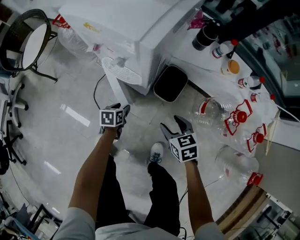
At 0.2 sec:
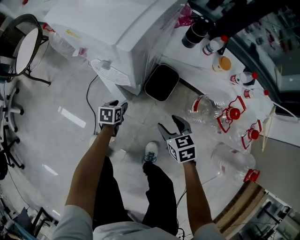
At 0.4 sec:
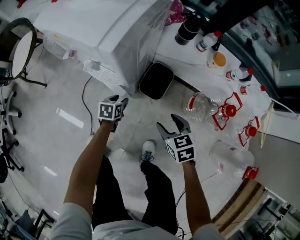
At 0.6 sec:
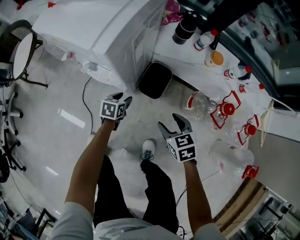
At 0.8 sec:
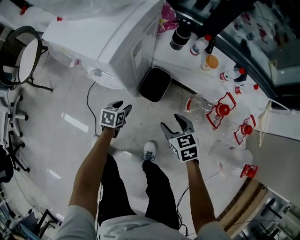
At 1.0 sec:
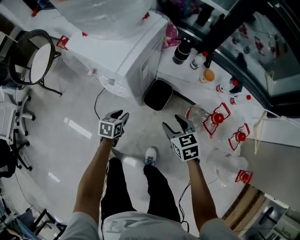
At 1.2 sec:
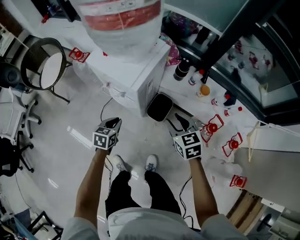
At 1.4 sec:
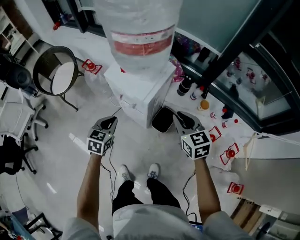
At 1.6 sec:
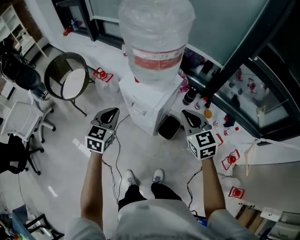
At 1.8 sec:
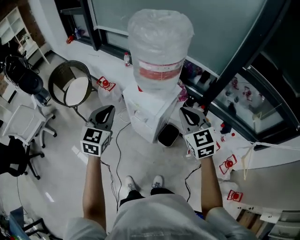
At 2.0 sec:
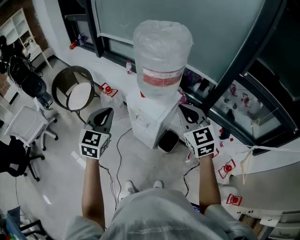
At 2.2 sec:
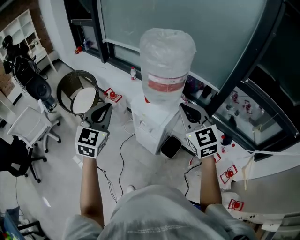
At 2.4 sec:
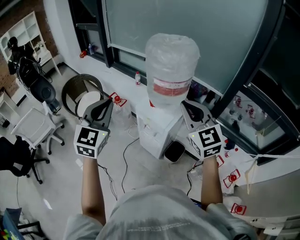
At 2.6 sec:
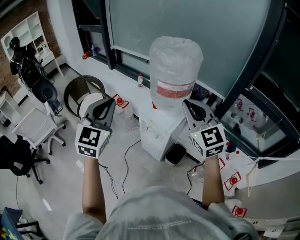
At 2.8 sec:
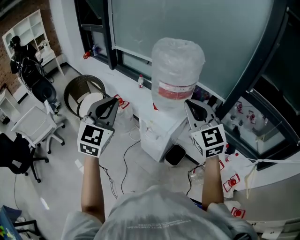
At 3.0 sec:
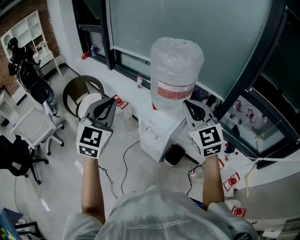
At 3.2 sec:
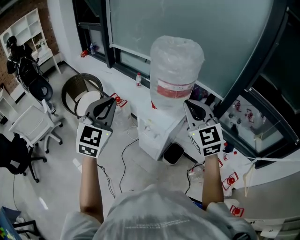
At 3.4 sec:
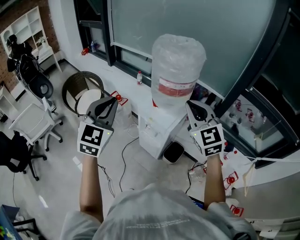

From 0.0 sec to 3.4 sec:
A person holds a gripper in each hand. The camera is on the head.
From 0.0 sec to 1.6 sec: Both grippers move upward, roughly 60 cm. The right gripper rotates some 30 degrees, and closes its fingers, while the left gripper points its fingers about 30 degrees further upward, and closes.
From 1.6 sec to 3.4 sec: The left gripper is displaced upward by roughly 25 cm, and changes its angle by roughly 30 degrees. The right gripper shifts roughly 25 cm upward and to the left, and changes its angle by roughly 30 degrees.

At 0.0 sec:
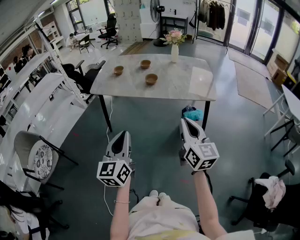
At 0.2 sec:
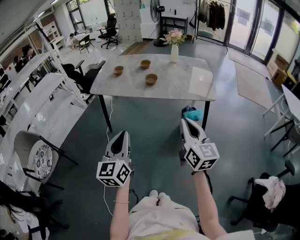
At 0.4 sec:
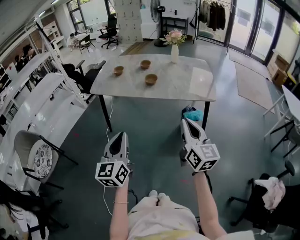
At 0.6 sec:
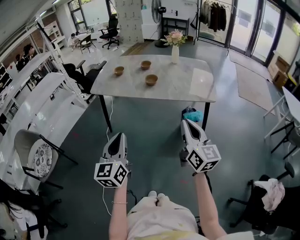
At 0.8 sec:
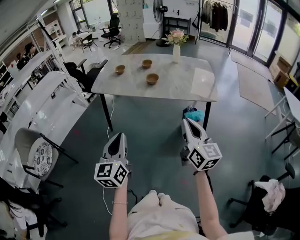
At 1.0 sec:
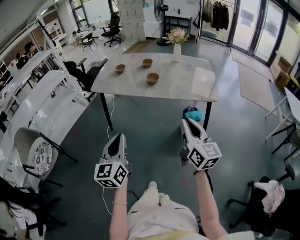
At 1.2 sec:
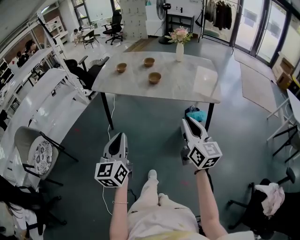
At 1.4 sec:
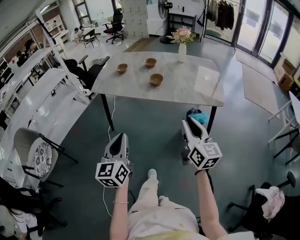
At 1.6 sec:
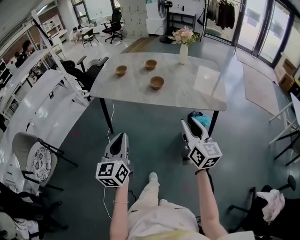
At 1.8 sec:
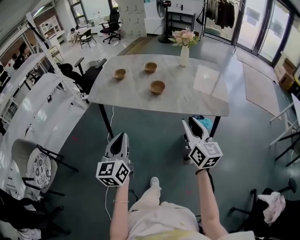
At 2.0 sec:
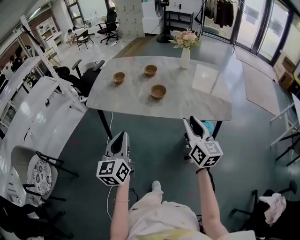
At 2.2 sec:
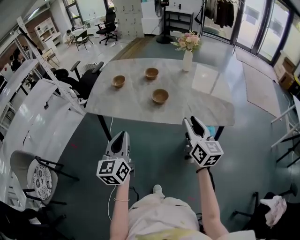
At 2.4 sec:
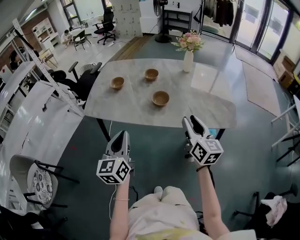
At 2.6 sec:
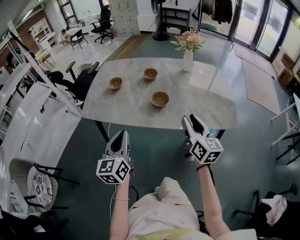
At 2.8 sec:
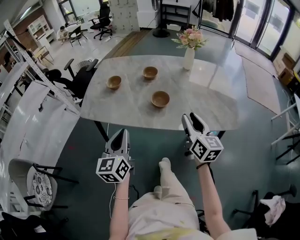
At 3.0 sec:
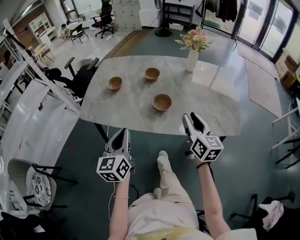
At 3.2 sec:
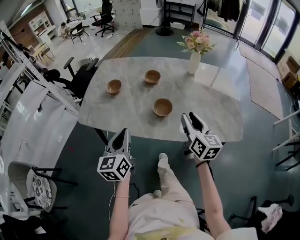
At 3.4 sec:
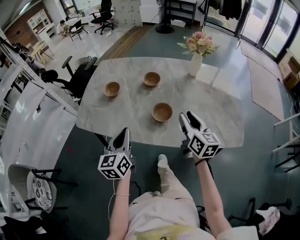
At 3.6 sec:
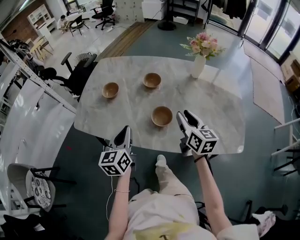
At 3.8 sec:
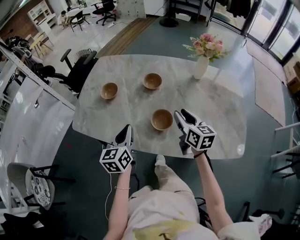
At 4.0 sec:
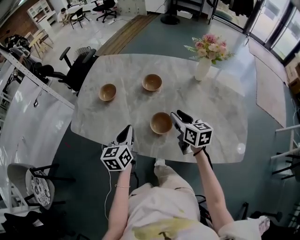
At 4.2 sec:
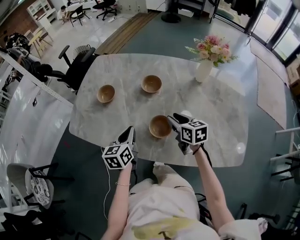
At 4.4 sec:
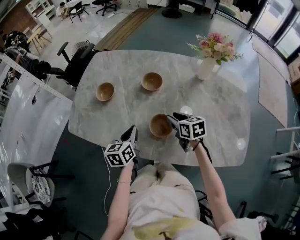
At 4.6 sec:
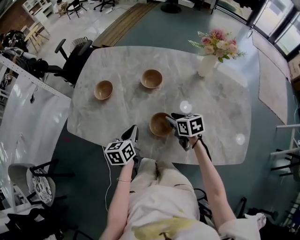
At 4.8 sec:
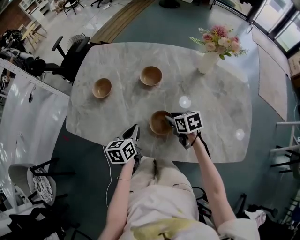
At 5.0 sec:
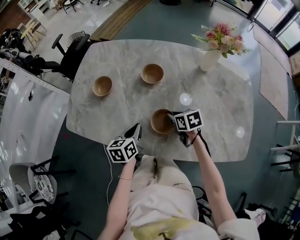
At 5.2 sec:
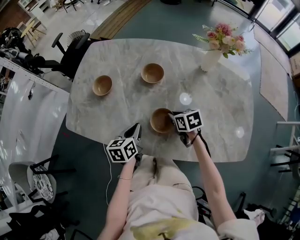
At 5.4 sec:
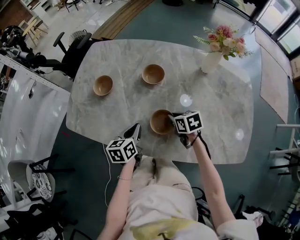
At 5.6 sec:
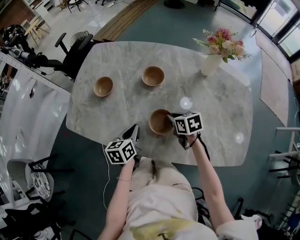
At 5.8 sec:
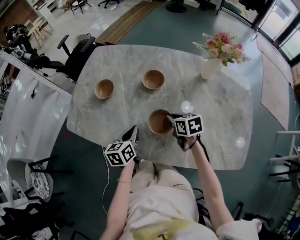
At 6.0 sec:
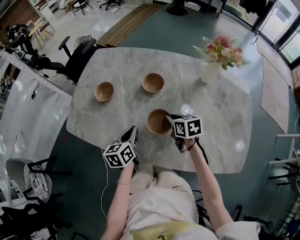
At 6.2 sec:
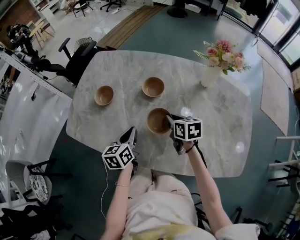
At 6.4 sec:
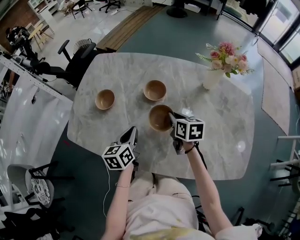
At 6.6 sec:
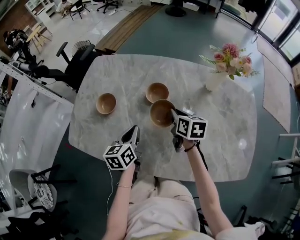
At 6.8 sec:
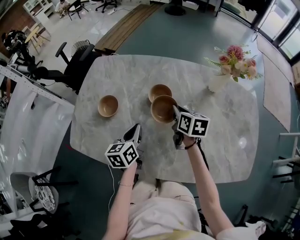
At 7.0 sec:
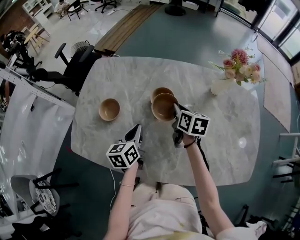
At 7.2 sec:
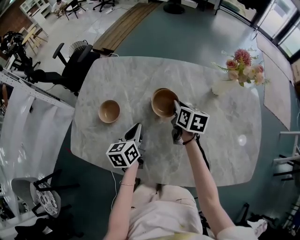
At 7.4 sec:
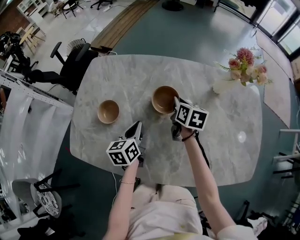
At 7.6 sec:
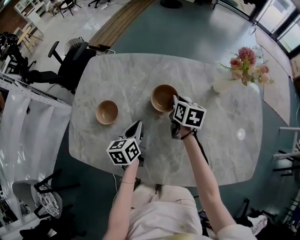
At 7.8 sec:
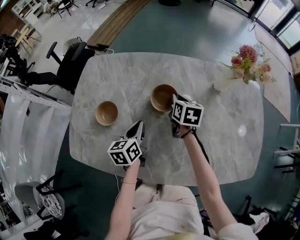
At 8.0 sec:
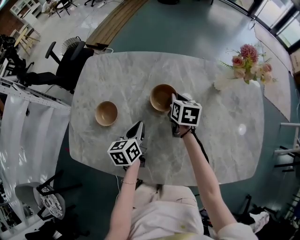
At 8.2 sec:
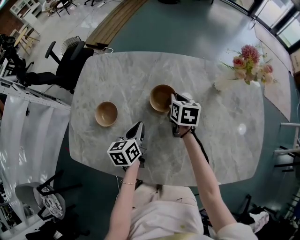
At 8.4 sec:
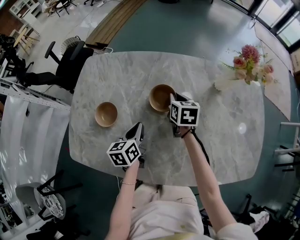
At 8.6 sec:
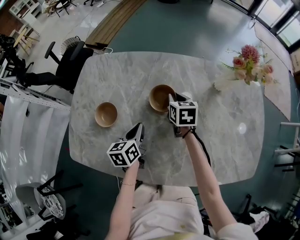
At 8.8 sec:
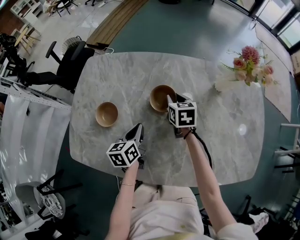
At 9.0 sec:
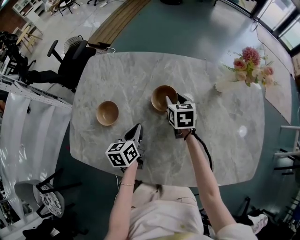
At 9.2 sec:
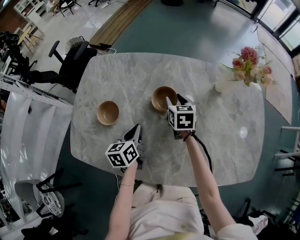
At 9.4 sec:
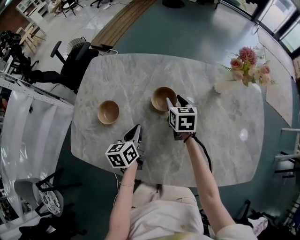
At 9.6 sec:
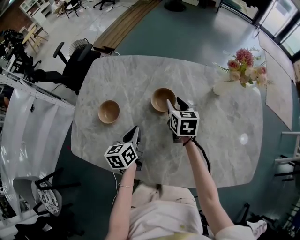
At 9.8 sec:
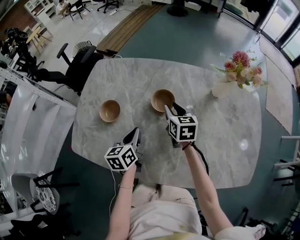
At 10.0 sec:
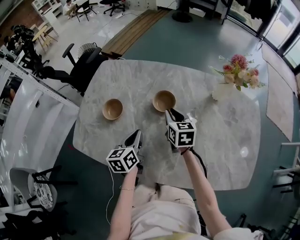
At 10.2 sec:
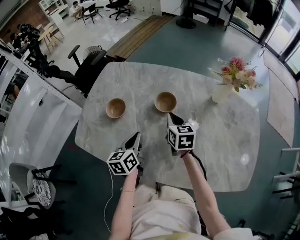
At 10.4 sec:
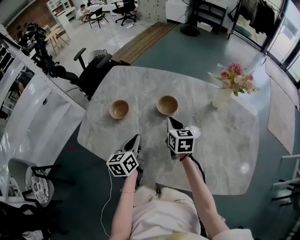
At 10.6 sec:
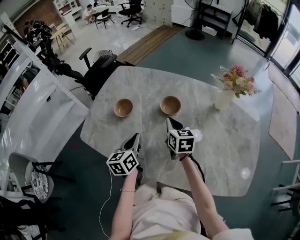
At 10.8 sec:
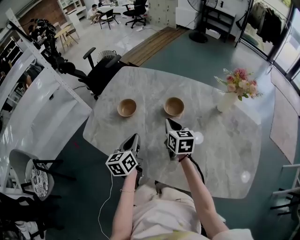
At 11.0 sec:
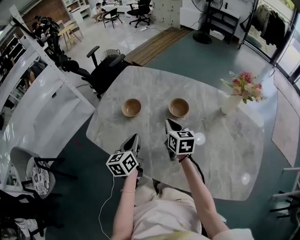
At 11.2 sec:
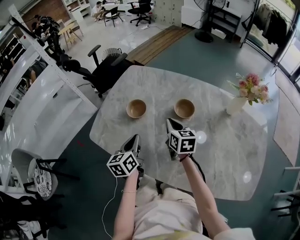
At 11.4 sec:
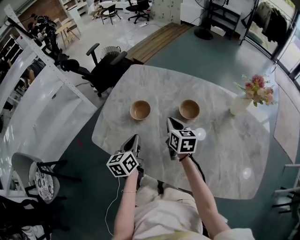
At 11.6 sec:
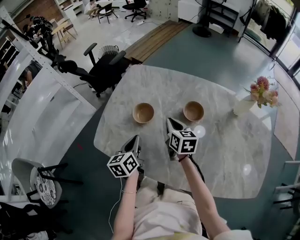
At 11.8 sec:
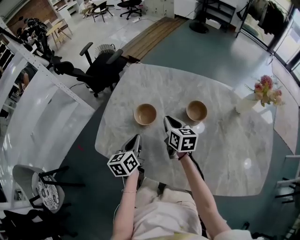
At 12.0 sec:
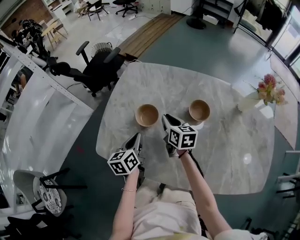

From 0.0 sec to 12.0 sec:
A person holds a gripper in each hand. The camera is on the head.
From 0.0 sec to 1.6 sec: Both grippers move forward, about 10 cm. The right gripper opens.
From 1.6 sec to 3.0 sec: Both grippers travel together forward, roughly 30 cm.
From 3.0 sec to 4.4 sec: Both grippers travel together forward and downward, some 30 cm. The left gripper rotates about 20 degrees. The right gripper tips its fingers downward by some 30 degrees.
From 4.4 sec to 6.0 sec: The right gripper closes its fingers.
From 6.0 sec to 7.6 sec: Both grippers move forward, approximately 15 cm. The right gripper turns by about 30 degrees.
From 7.6 sec to 9.0 sec: The right gripper opens its fingers.
From 9.0 sec to 10.4 sec: Both grippers travel together backward and upward, about 15 cm. The right gripper closes its fingers.
From 10.4 sec to 12.0 sec: The two grippers go approximately 20 cm to the left and forward.

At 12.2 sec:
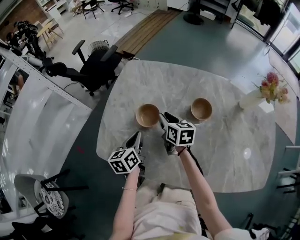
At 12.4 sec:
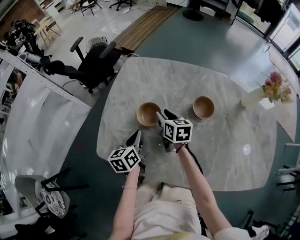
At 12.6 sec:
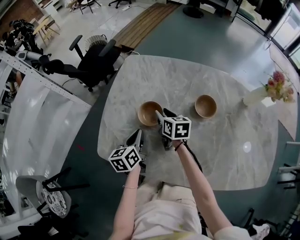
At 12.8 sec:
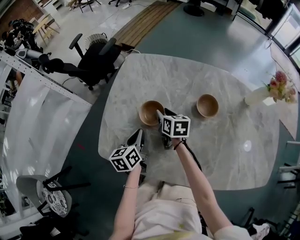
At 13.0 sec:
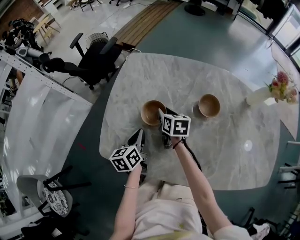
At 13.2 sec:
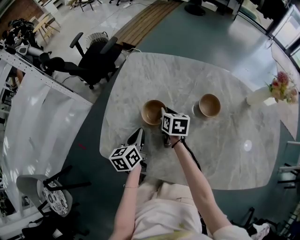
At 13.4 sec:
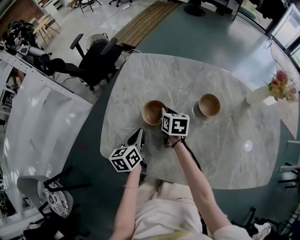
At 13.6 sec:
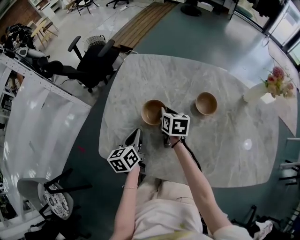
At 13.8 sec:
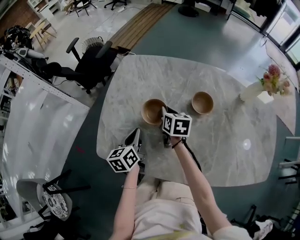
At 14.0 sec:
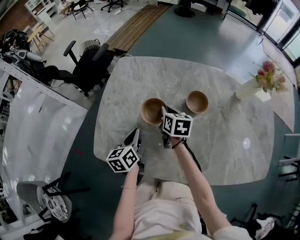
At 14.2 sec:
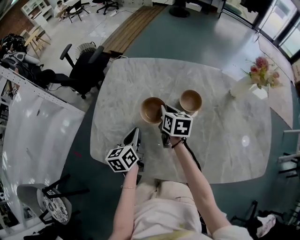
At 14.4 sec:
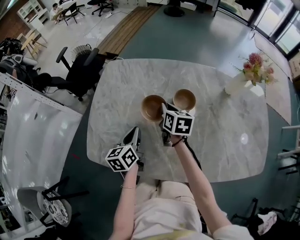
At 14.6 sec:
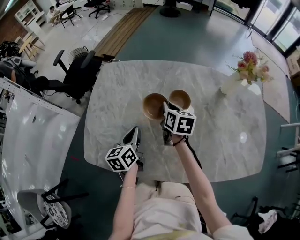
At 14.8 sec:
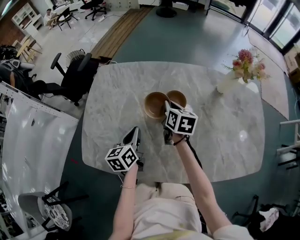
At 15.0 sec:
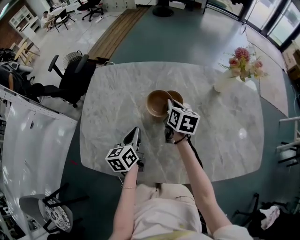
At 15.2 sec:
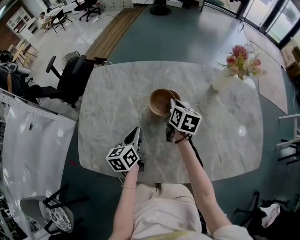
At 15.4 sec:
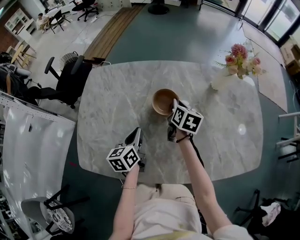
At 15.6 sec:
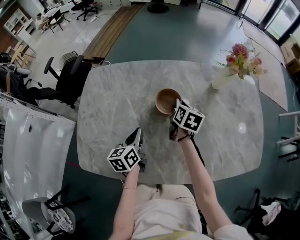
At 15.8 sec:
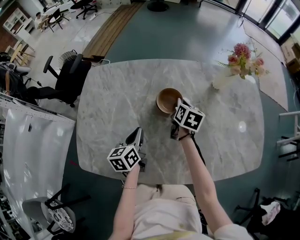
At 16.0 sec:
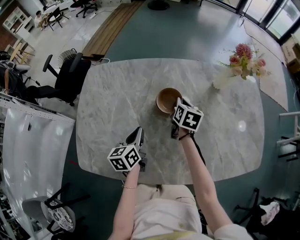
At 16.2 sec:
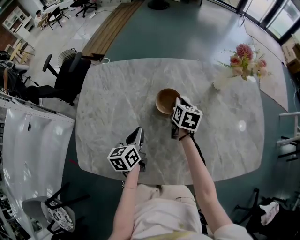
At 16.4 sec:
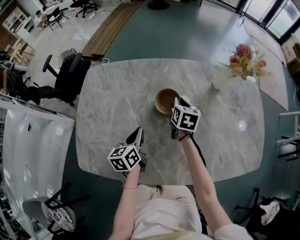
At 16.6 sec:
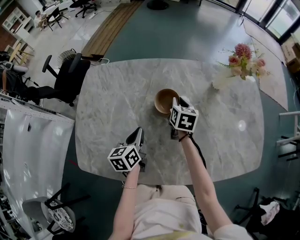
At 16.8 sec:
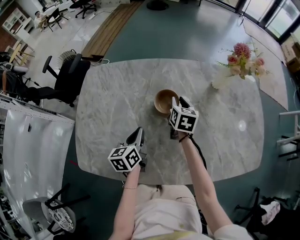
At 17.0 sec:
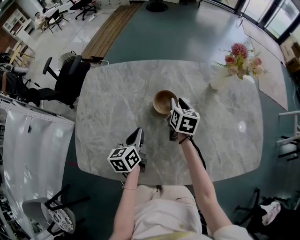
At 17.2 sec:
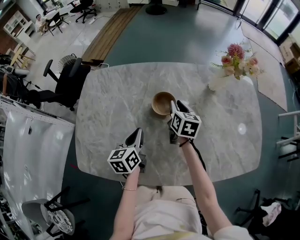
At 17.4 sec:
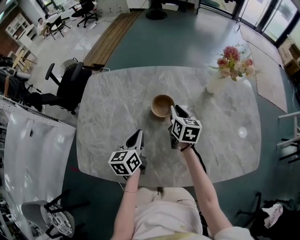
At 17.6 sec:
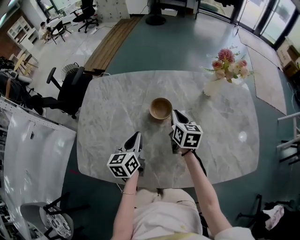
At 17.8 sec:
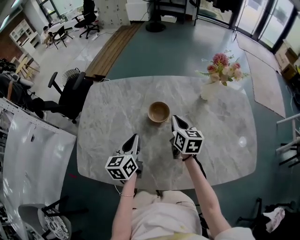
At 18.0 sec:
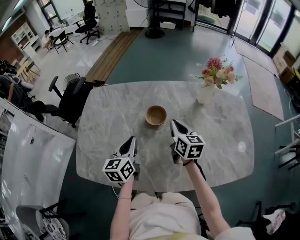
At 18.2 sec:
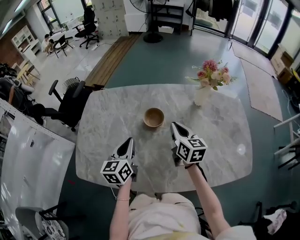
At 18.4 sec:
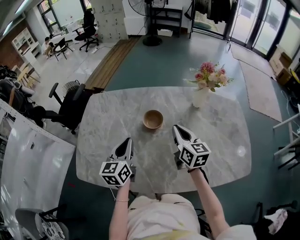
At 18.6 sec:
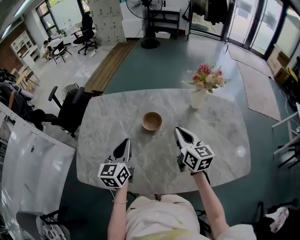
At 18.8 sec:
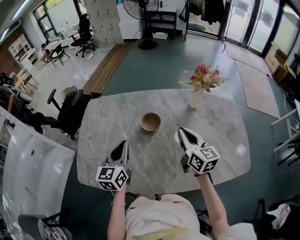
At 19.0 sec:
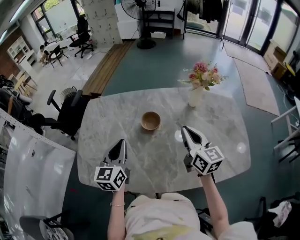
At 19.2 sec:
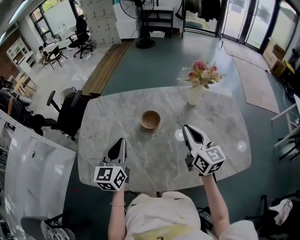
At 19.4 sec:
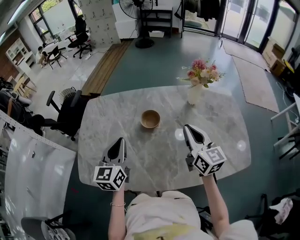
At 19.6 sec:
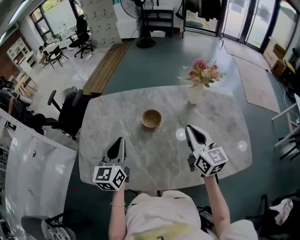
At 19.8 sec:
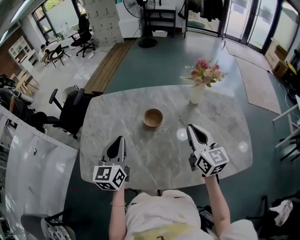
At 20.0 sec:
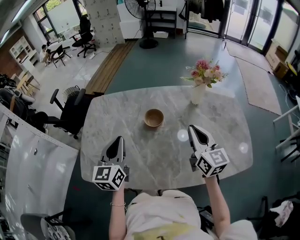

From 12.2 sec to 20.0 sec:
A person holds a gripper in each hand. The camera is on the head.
From 13.8 sec to 15.4 sec: The grippers both shift to the right by roughly 20 cm. The right gripper rotates some 20 degrees.
From 15.4 sec to 16.8 sec: The grippers stay close to where they were, moving slightly.
From 16.8 sec to 18.4 sec: The left gripper is displaced upward by about 15 cm, and rotates approximately 20 degrees. The right gripper heads upward, backward and to the right, covering about 20 cm, swivels some 30 degrees, and closes.
From 18.4 sec to 20.0 sec: The left gripper is displaced upward by roughly 5 cm. The right gripper shifts about 10 cm upward and backward.
